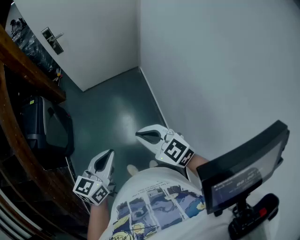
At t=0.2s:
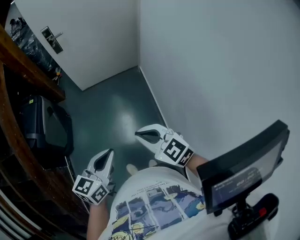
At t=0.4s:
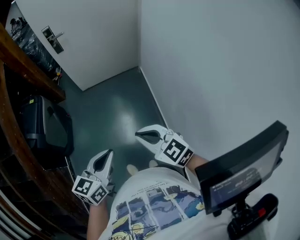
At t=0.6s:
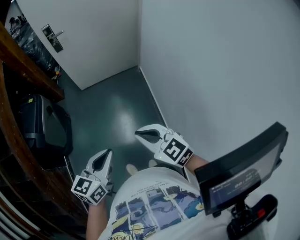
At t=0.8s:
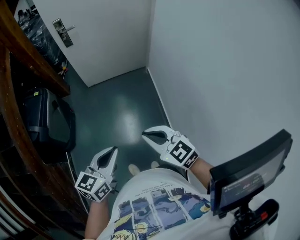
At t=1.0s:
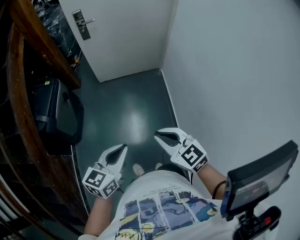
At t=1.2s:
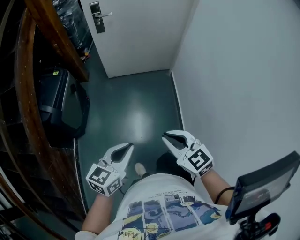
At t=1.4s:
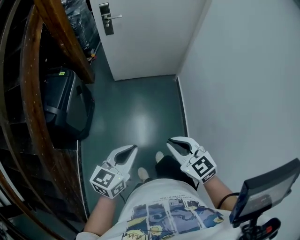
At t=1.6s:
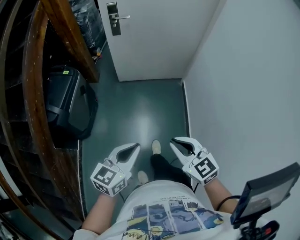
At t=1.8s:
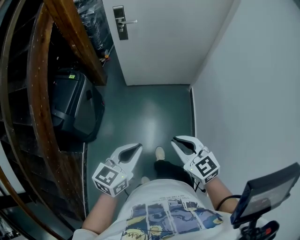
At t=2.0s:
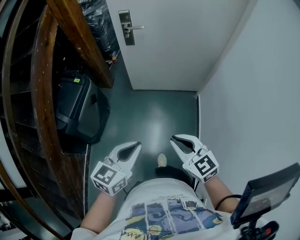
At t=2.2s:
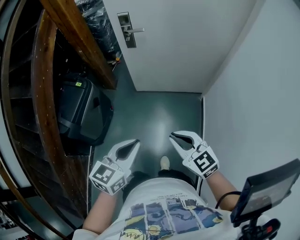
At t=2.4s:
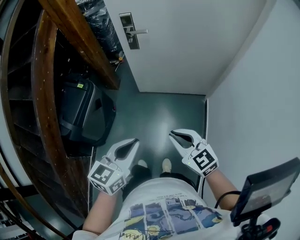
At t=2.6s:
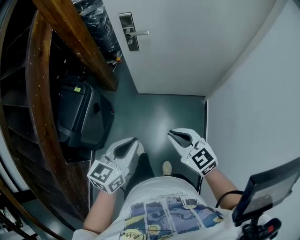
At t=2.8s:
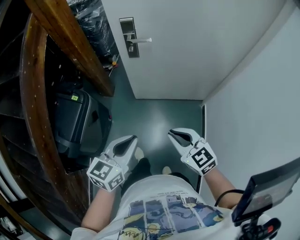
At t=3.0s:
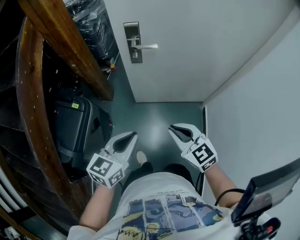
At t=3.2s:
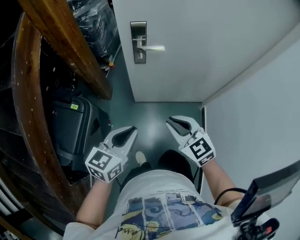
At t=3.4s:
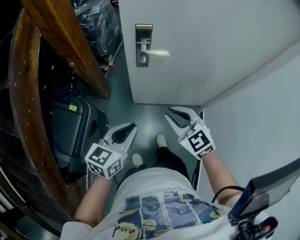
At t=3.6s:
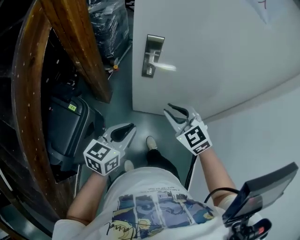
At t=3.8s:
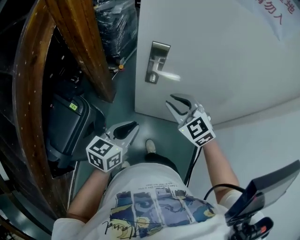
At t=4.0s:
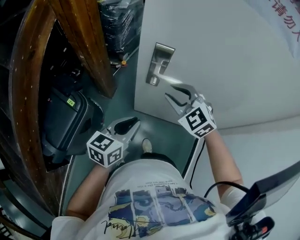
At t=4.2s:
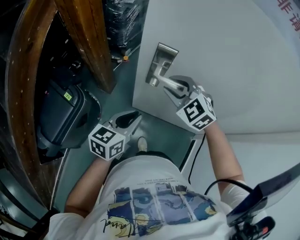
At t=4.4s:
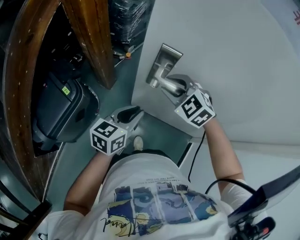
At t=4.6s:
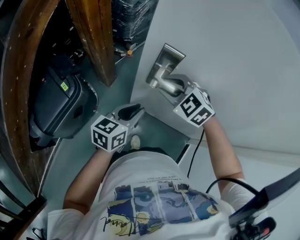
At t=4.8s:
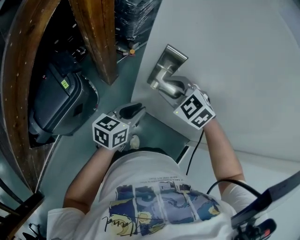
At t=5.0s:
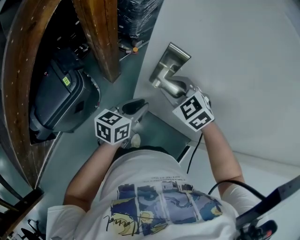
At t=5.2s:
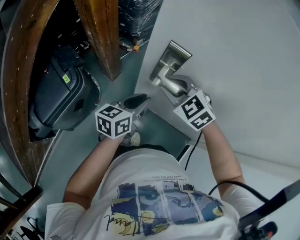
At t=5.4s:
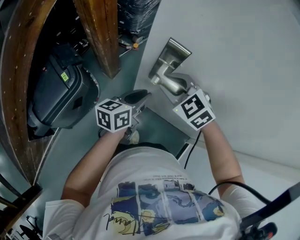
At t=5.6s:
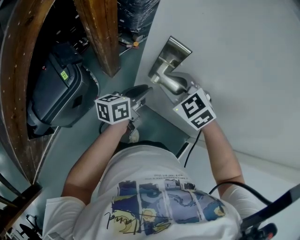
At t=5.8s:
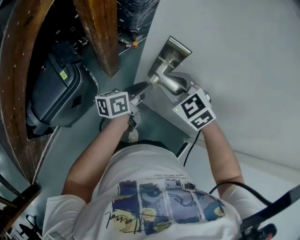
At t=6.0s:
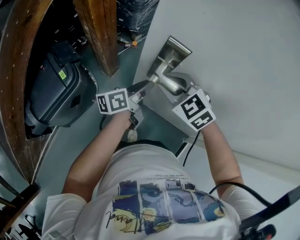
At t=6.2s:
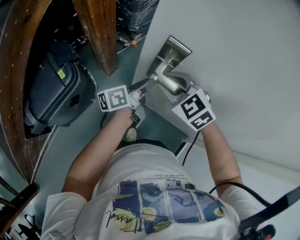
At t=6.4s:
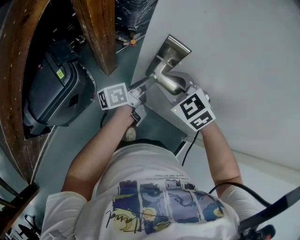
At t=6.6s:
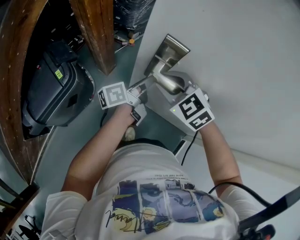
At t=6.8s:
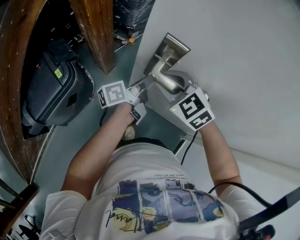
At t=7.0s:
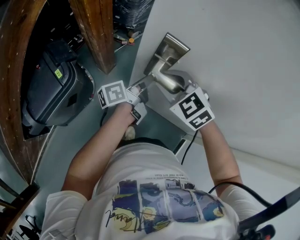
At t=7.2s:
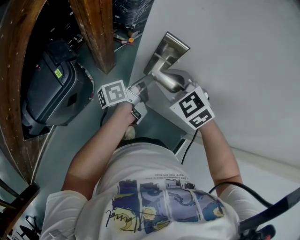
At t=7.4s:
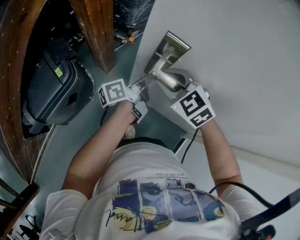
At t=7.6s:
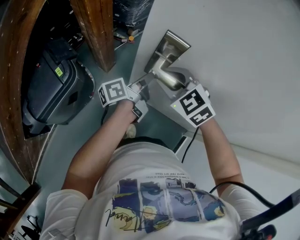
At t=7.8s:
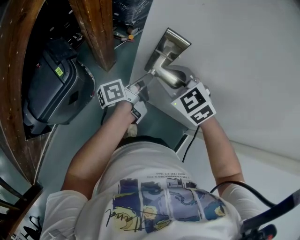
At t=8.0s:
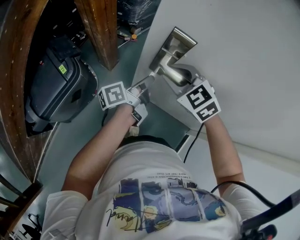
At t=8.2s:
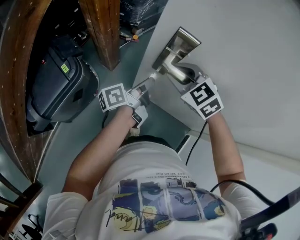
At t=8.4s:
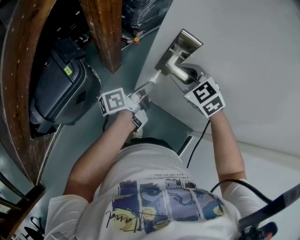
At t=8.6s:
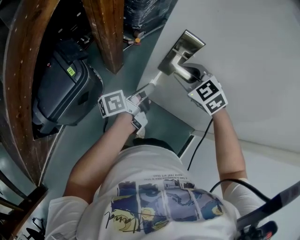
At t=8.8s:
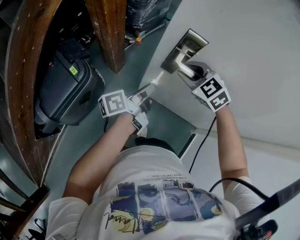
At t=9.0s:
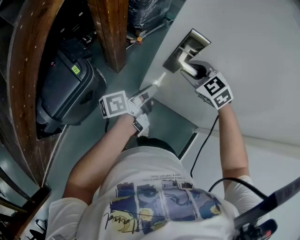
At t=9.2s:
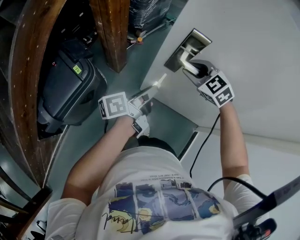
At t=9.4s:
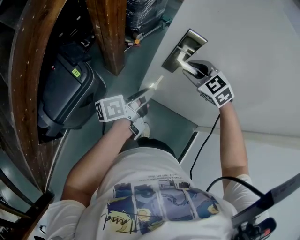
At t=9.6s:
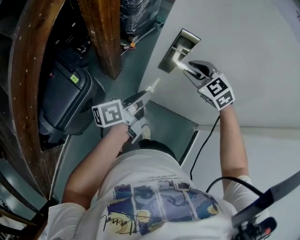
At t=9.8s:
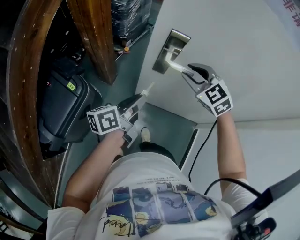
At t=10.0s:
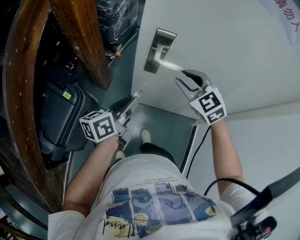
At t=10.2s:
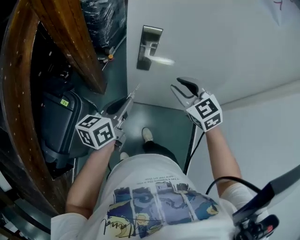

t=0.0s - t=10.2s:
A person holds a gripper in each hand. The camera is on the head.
t=0.0s - t=1.4s: The left gripper goes some 10 cm to the left and forward; the right gripper moves to the left, approximately 10 cm.
t=1.4s - t=3.0s: Both grippers are carried forward, about 50 cm.
t=3.0s - t=4.4s: Both grippers move forward, approximately 35 cm. The left gripper changes its angle by roughly 20 degrees, while the right gripper turns by some 50 degrees, and opens.
t=4.4s - t=5.8s: The left gripper heads forward and downward, covering roughly 10 cm, and rotates roughly 30 degrees.
t=5.8s - t=7.2s: The left gripper changes its angle by approximately 30 degrees, and closes its fingers.
t=7.2s - t=8.8s: The left gripper travels backward and to the left by approximately 10 cm.
t=8.8s - t=10.2s: The left gripper goes some 10 cm backward and upward, and twists approximately 40 degrees clockwise, seen from behind. Meanwhile the right gripper travels backward, upward and to the right by roughly 15 cm, and swivels about 30 degrees.

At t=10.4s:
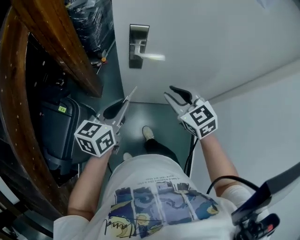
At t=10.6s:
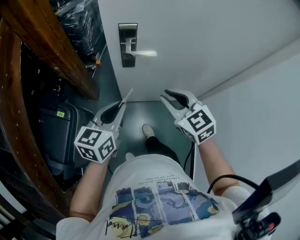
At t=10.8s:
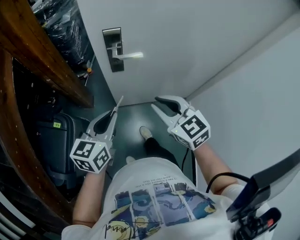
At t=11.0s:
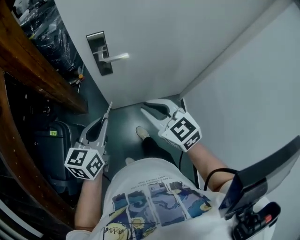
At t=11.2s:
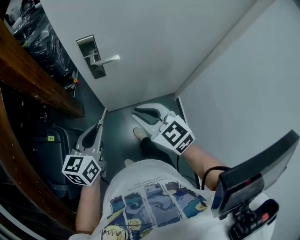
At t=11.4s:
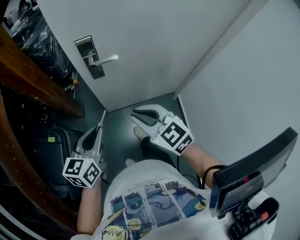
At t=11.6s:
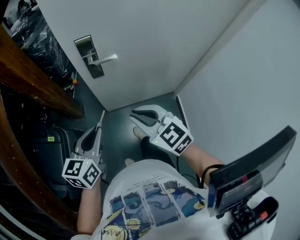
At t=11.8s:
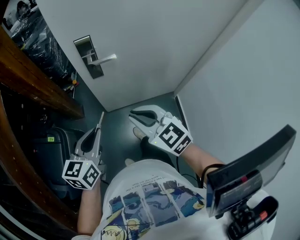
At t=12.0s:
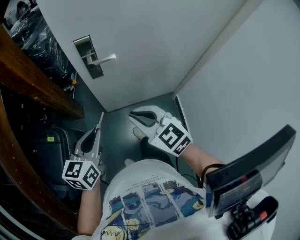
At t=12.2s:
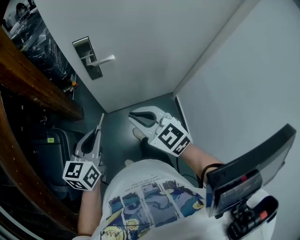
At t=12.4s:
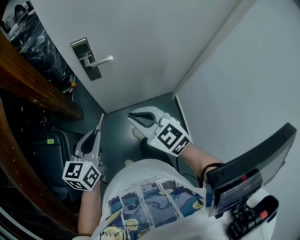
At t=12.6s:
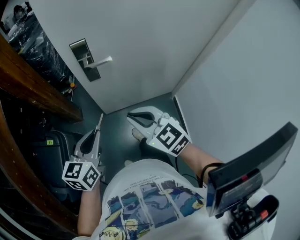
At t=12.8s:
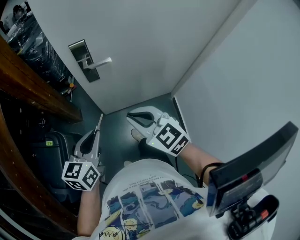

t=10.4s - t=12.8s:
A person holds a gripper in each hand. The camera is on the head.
t=10.4s - t=11.6s: The right gripper heads backward, covering approximately 10 cm; the left gripper goes approximately 10 cm backward.
t=11.6s - t=12.8s: The two grippers keep their place.

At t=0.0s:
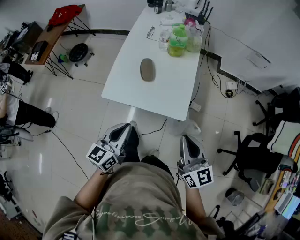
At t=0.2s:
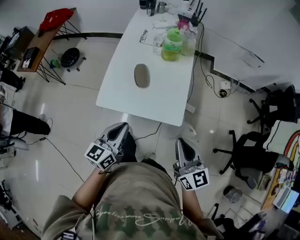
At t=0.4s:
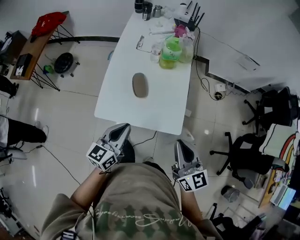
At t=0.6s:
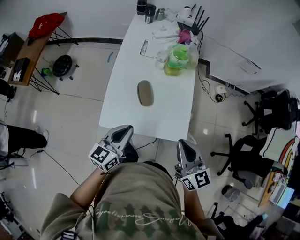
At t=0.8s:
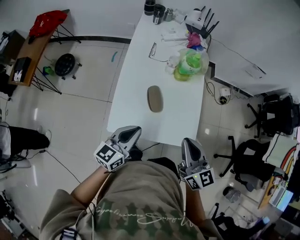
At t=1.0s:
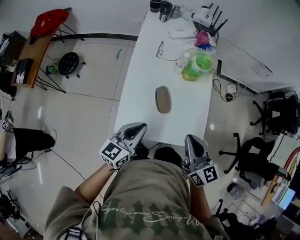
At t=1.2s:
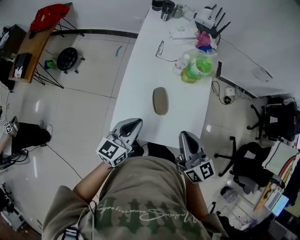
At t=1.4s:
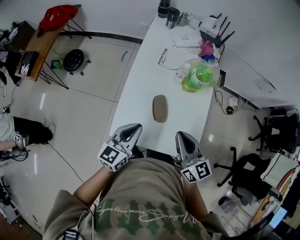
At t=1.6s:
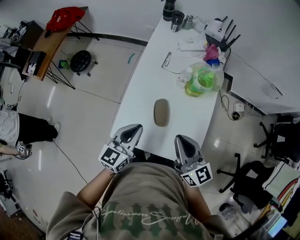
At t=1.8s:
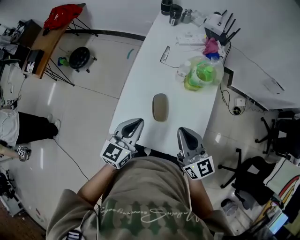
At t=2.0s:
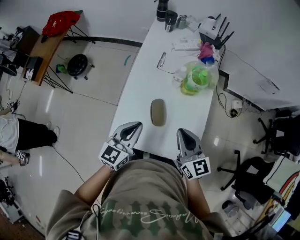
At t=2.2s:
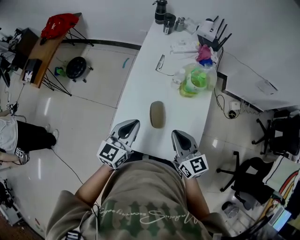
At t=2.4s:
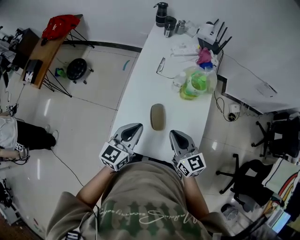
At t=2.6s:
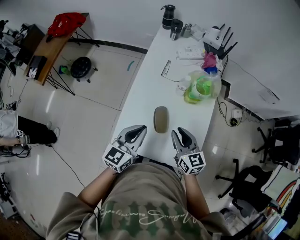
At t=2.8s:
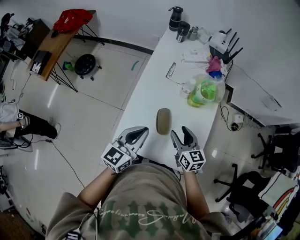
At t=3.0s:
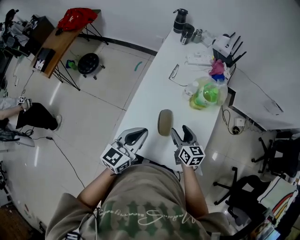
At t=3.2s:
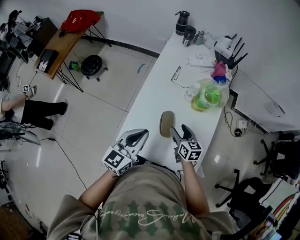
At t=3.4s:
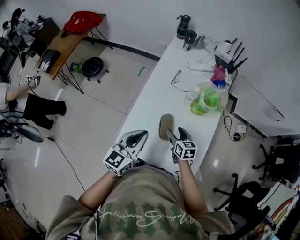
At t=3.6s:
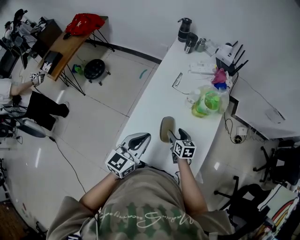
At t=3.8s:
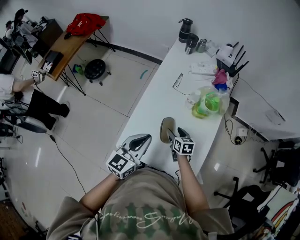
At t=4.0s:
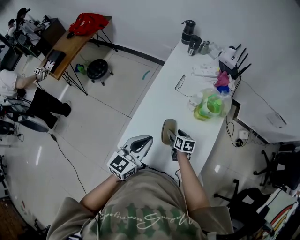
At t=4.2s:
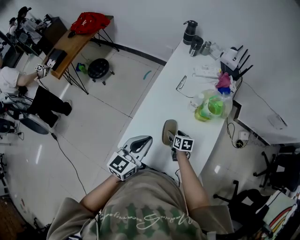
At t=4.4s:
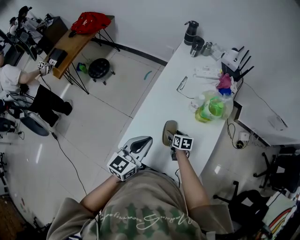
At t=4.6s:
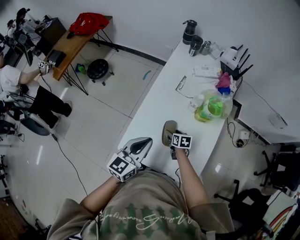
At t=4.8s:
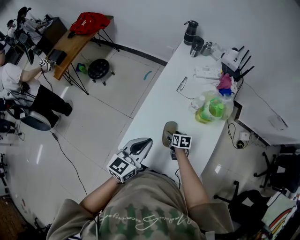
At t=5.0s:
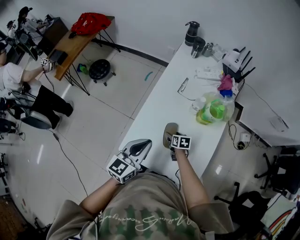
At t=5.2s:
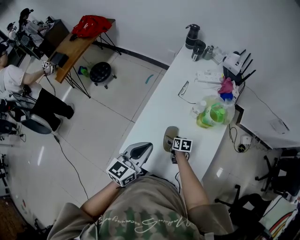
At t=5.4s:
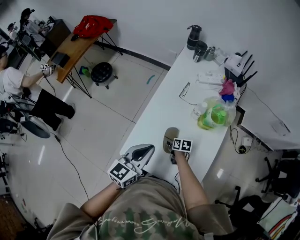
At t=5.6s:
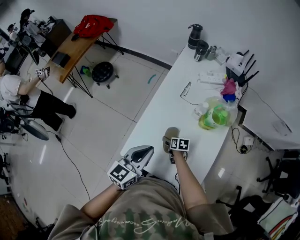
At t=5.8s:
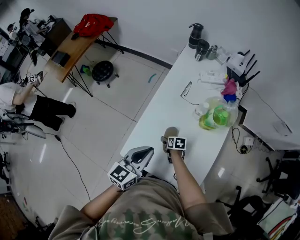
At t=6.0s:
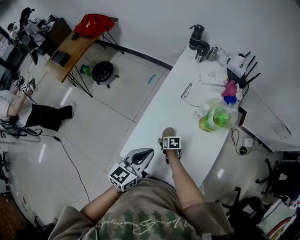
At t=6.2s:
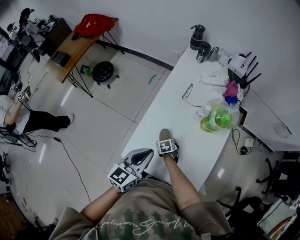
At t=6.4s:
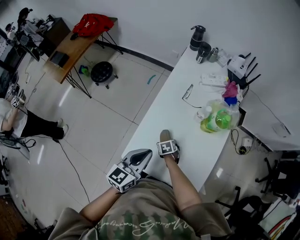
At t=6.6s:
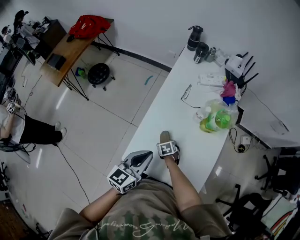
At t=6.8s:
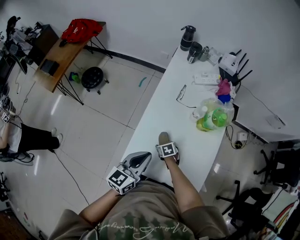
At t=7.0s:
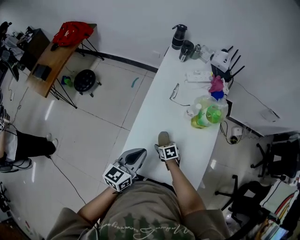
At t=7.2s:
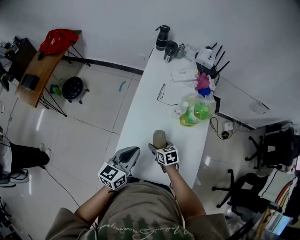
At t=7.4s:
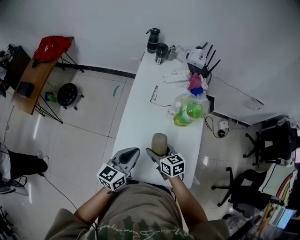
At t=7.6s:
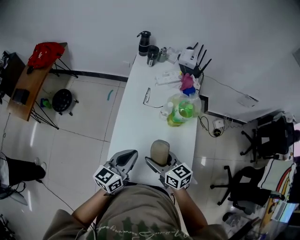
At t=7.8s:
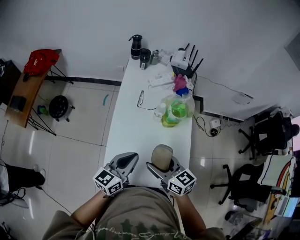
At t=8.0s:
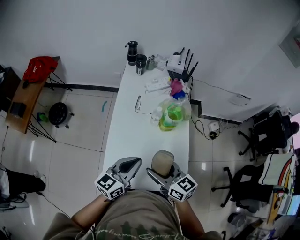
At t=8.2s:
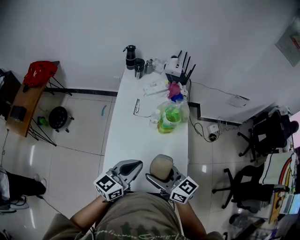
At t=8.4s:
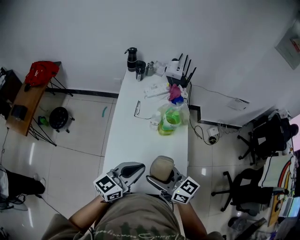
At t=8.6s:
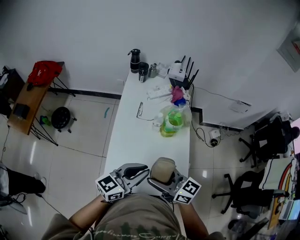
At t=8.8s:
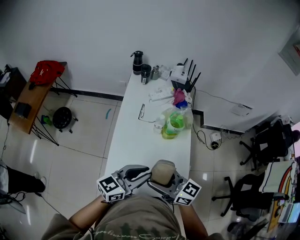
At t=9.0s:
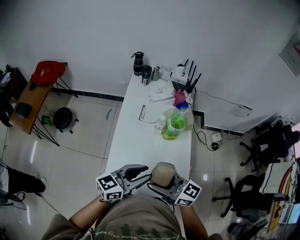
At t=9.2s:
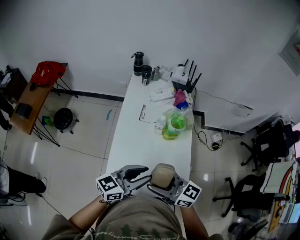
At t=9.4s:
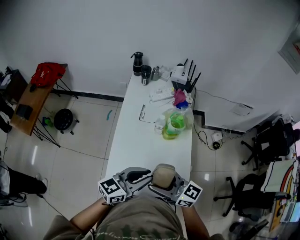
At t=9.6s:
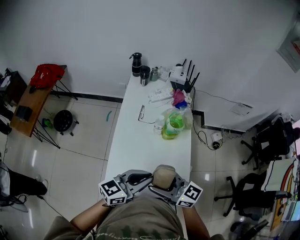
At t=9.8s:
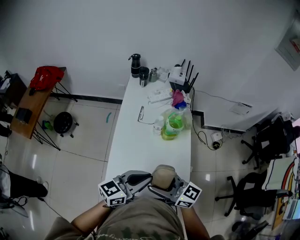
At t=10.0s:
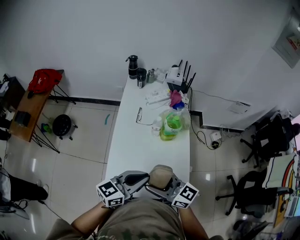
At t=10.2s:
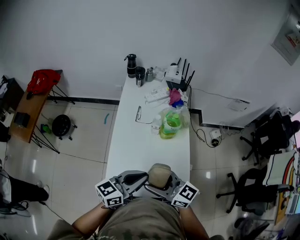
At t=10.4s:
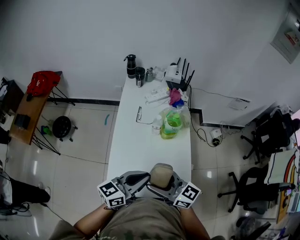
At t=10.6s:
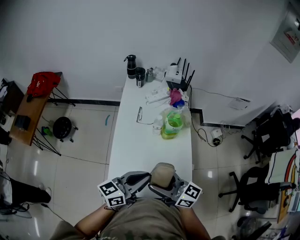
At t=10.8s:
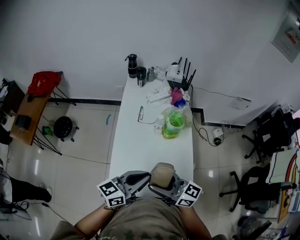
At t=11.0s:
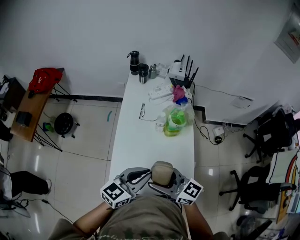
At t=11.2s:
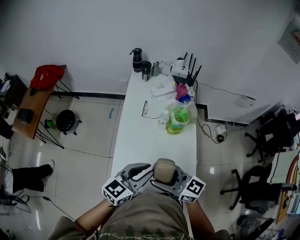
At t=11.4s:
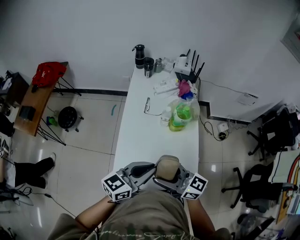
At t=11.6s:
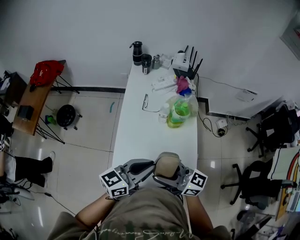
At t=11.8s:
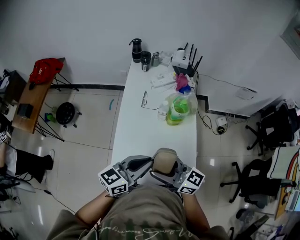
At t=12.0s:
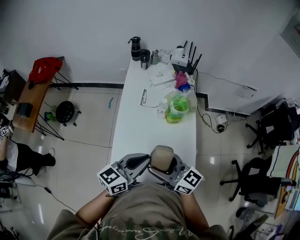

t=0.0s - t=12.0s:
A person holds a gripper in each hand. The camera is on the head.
t=0.0s - t=1.6s: Both grippers move forward and to the left, approximately 30 cm.
t=1.6s - t=3.0s: The right gripper travels downward and forward by roughly 20 cm, rotates about 30 degrees, and opens its fingers.
t=3.0s - t=4.4s: The right gripper is displaced downward by about 15 cm, and turns by roughly 30 degrees.
t=4.4s - t=6.0s: The right gripper moves to the left and downward, some 10 cm.
t=6.0s - t=7.6s: The right gripper heads upward, covering roughly 30 cm, and tips its fingers upward by about 40 degrees.
t=7.6s - t=9.0s: The left gripper shifts about 10 cm to the right, upward and backward, turns by about 20 degrees, and opens, while the right gripper moves upward and backward, roughly 10 cm, and rotates roughly 30 degrees.
t=9.0s - t=10.4s: The left gripper closes.
t=10.4s - t=12.0s: There are only small adjustments of the grippers.
